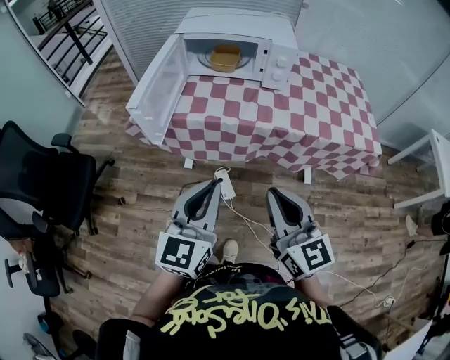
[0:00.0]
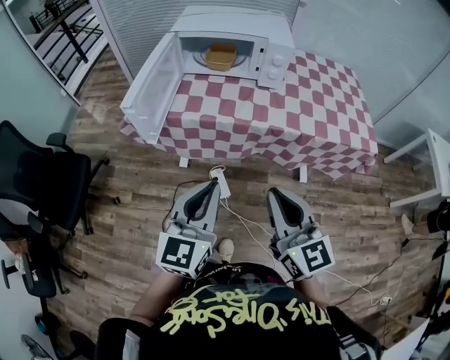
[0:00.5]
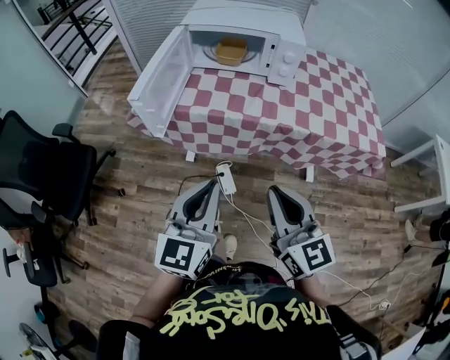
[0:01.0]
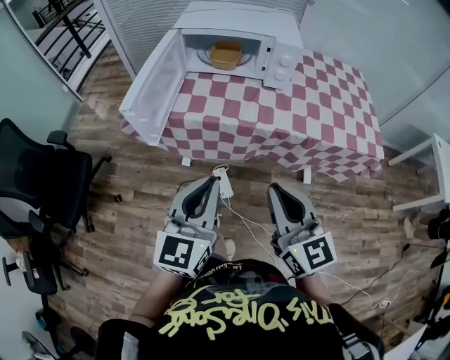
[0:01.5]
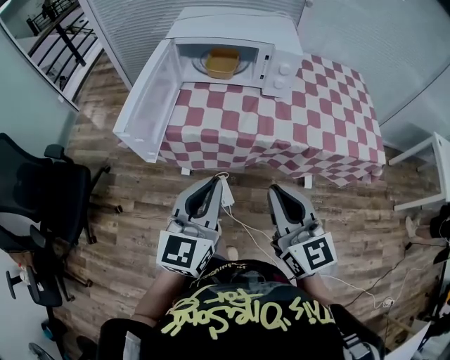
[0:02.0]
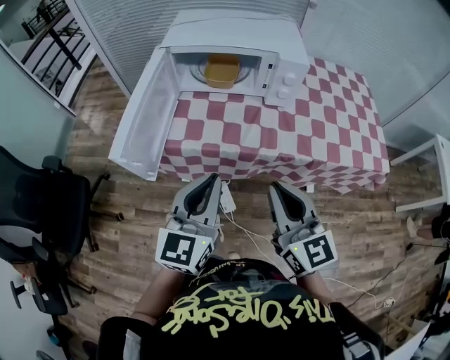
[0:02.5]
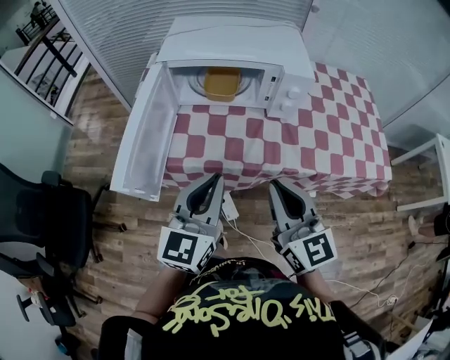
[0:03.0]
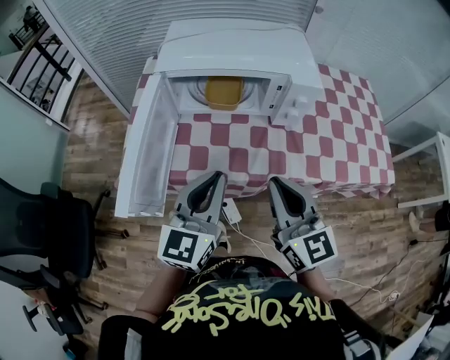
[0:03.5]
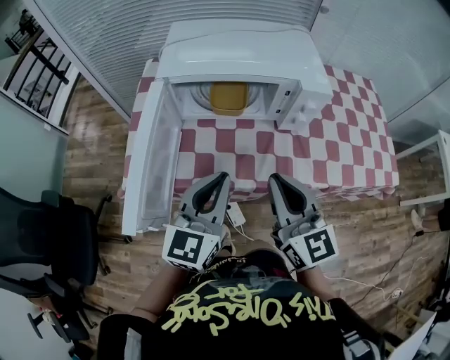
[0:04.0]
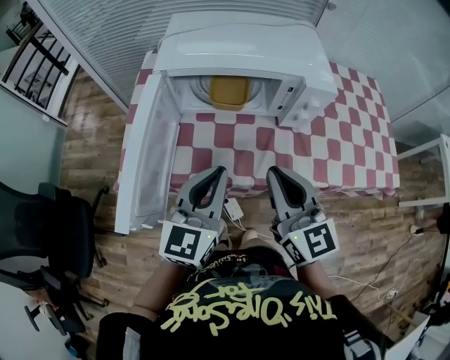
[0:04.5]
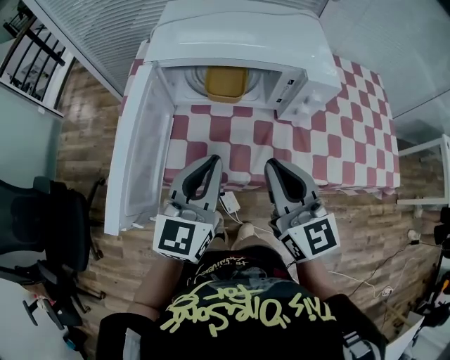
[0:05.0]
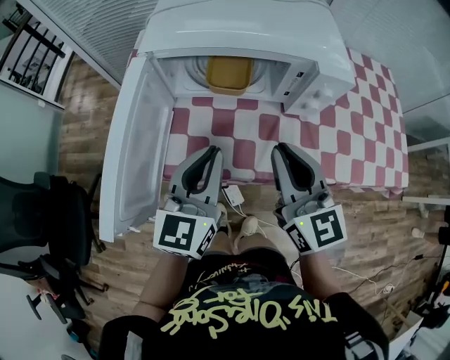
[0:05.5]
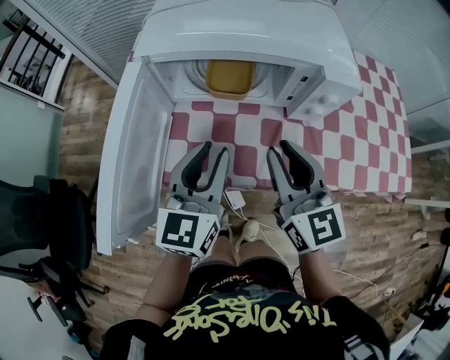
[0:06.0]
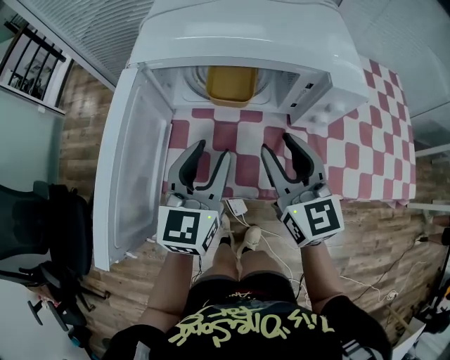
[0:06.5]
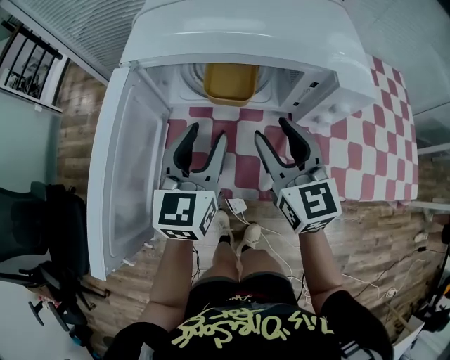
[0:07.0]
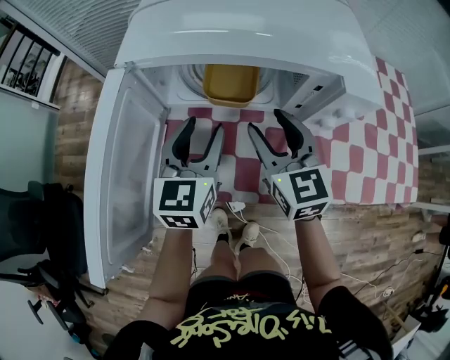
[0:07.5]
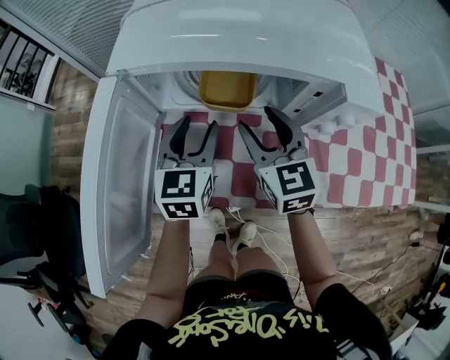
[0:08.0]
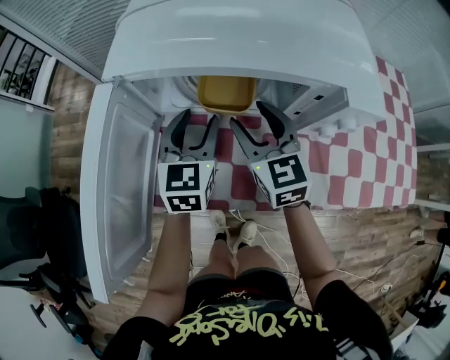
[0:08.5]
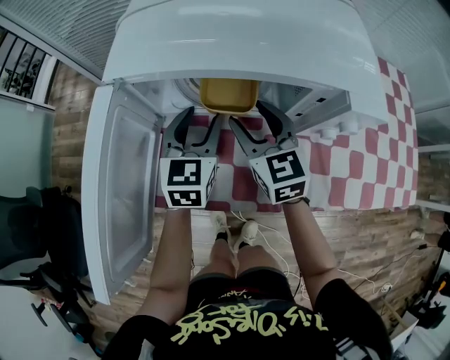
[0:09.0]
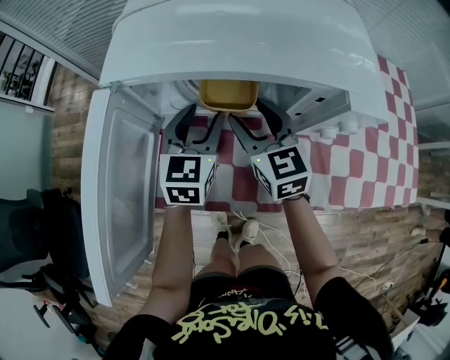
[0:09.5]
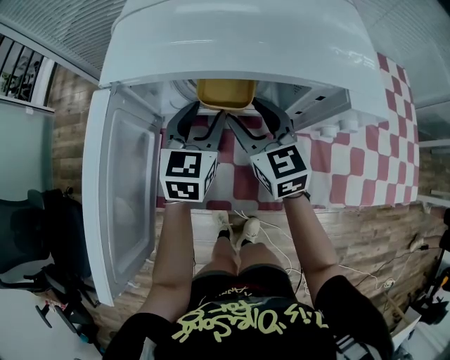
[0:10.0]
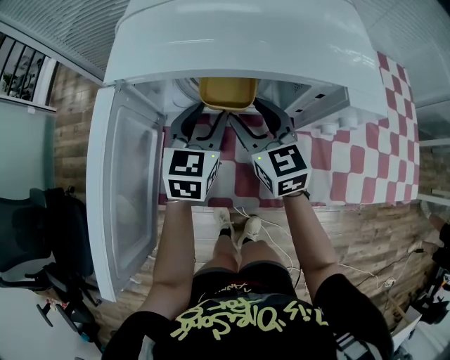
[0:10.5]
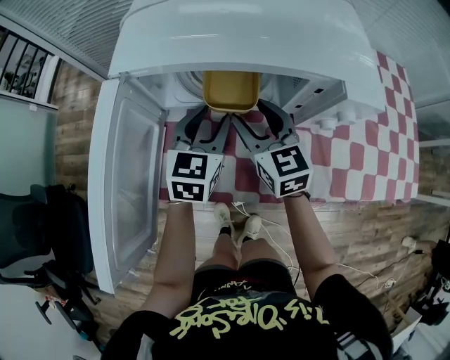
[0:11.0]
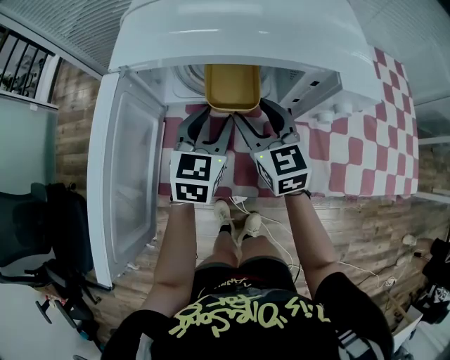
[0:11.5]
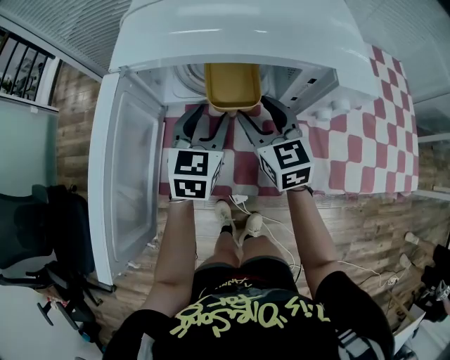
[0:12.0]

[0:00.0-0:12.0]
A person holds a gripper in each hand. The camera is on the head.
0:00.0 to 0:02.0: The grippers both shift forward by some 10 cm.
0:02.0 to 0:04.0: Both grippers travel together forward, approximately 20 cm.
0:04.0 to 0:06.0: Both grippers move forward, about 10 cm. The left gripper opens its fingers.
0:06.0 to 0:08.0: The two grippers go about 15 cm forward and downward. The right gripper opens, while the left gripper opens its fingers.
0:08.0 to 0:12.0: The grippers make only small movements.

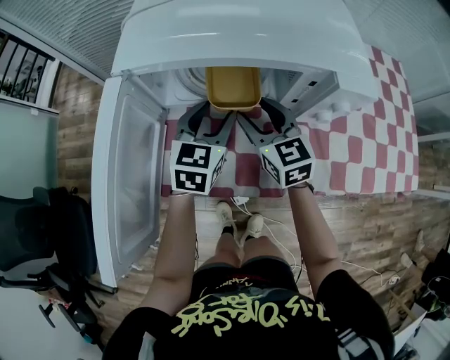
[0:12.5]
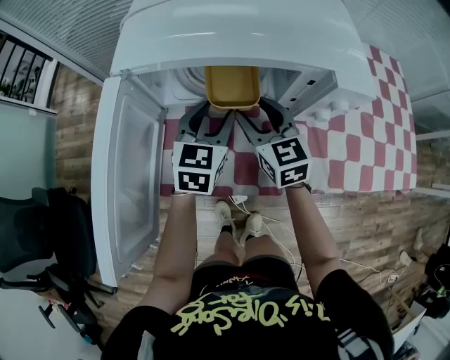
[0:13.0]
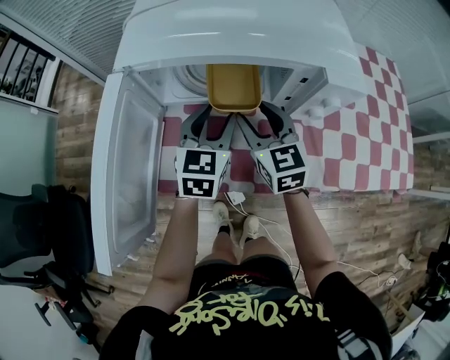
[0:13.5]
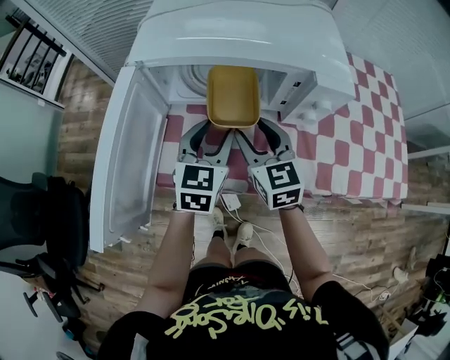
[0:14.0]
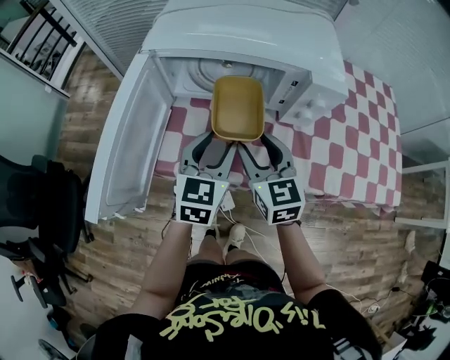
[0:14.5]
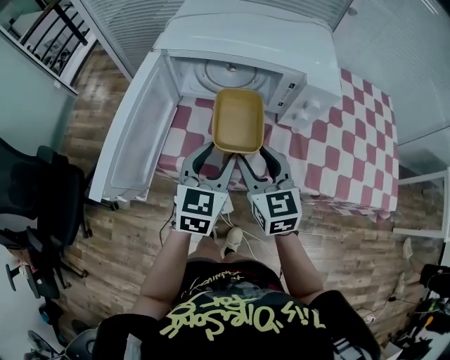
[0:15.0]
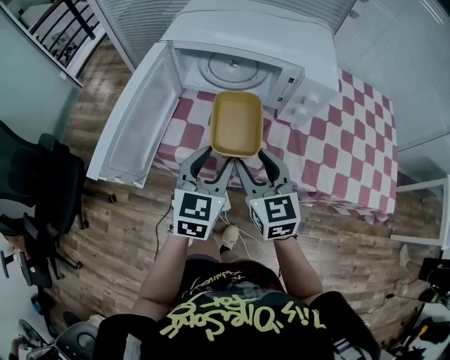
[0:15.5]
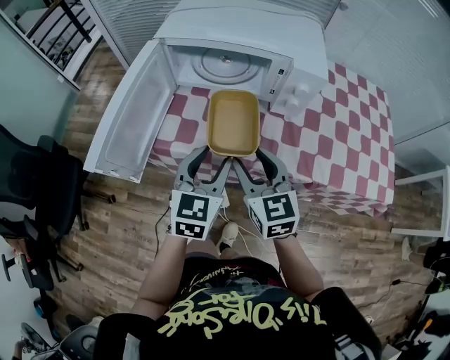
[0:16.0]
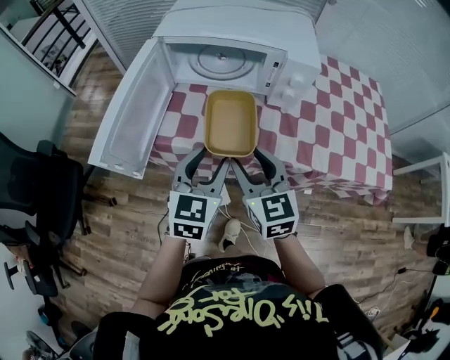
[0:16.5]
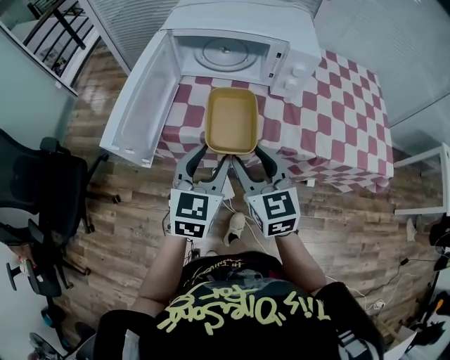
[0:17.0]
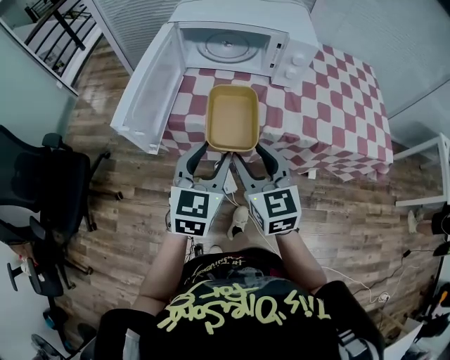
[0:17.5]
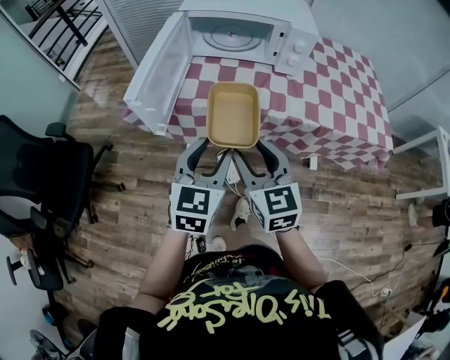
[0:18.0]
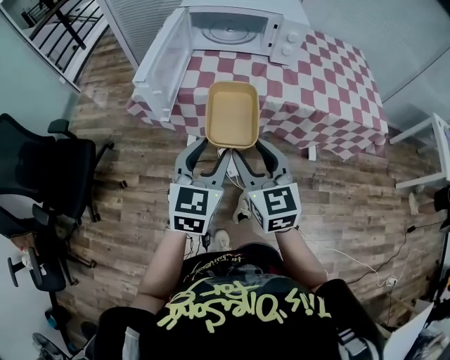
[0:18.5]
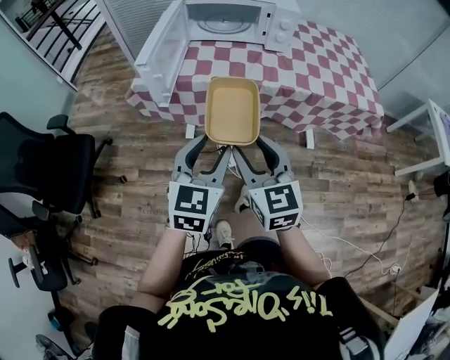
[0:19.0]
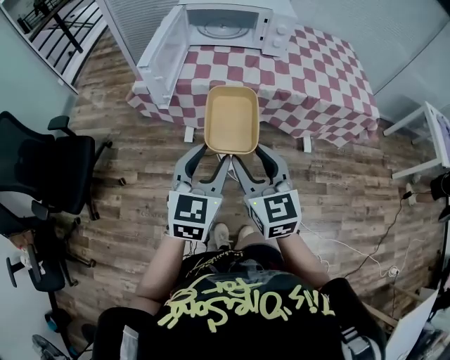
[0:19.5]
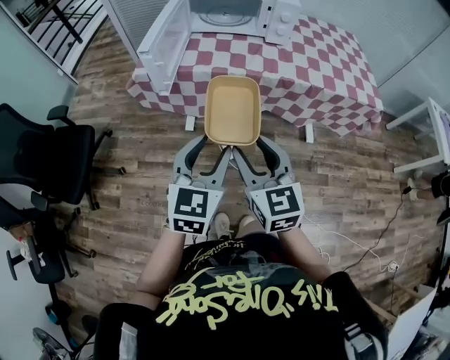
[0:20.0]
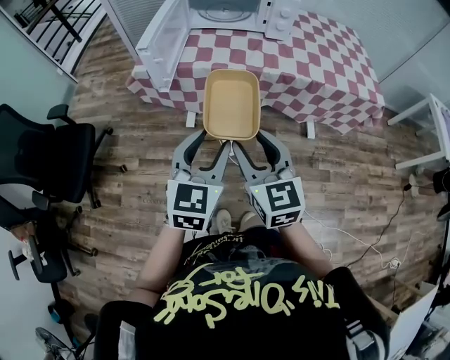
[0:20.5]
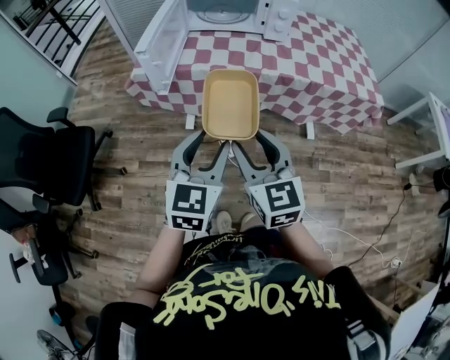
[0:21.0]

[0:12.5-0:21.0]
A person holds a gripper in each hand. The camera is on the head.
0:12.5 to 0:14.5: Both grippers move backward, roughly 10 cm.
0:14.5 to 0:16.5: The two grippers go some 15 cm backward.
0:16.5 to 0:19.0: The two grippers go approximately 25 cm backward.
0:19.0 to 0:21.0: The grippers stay close to where they were, moving slightly.

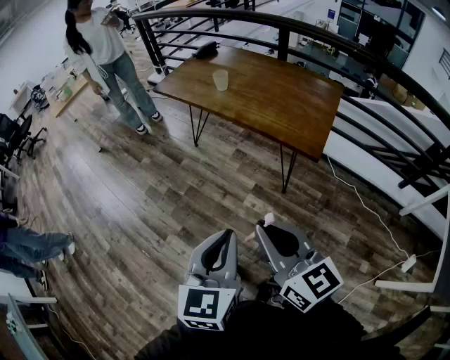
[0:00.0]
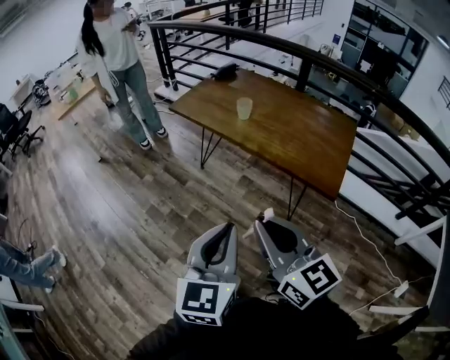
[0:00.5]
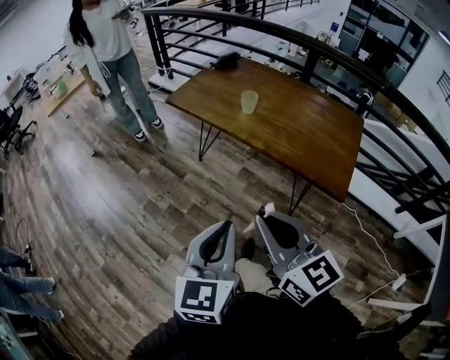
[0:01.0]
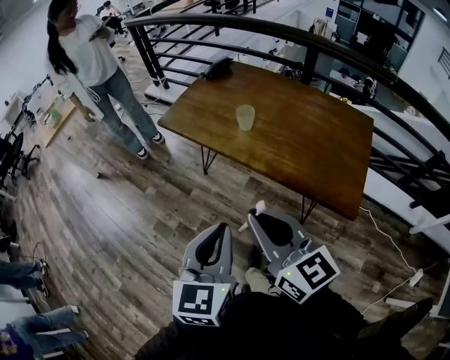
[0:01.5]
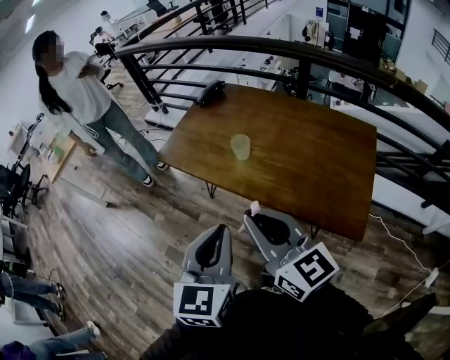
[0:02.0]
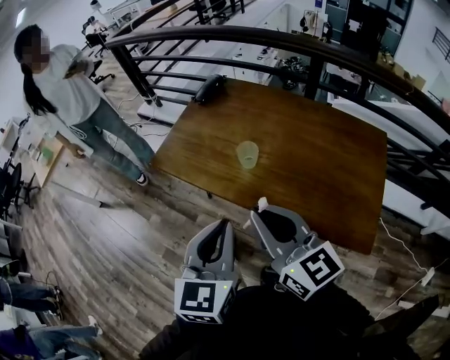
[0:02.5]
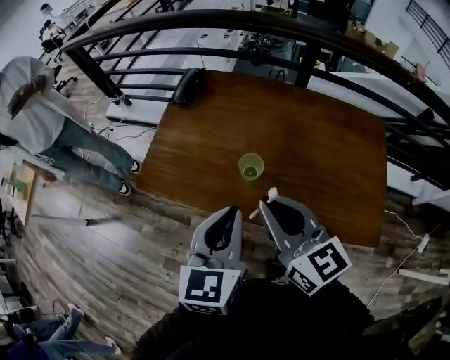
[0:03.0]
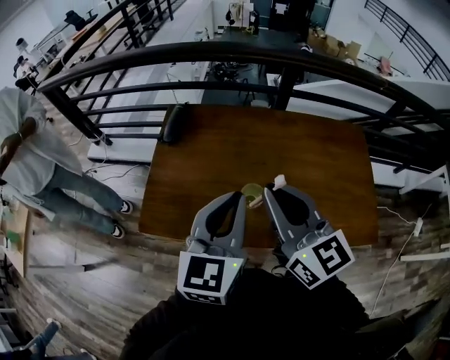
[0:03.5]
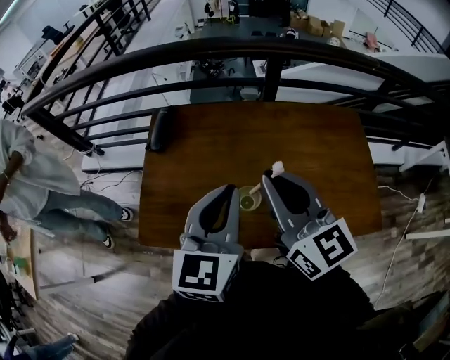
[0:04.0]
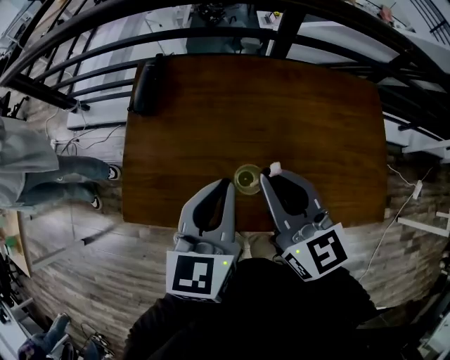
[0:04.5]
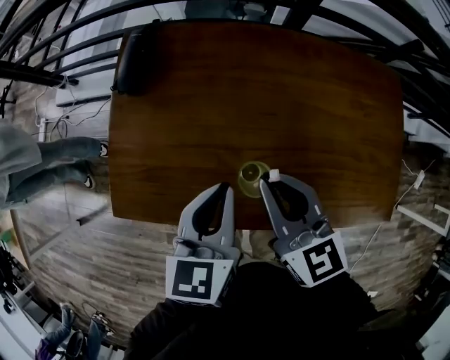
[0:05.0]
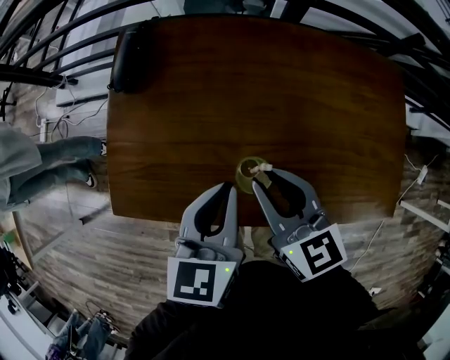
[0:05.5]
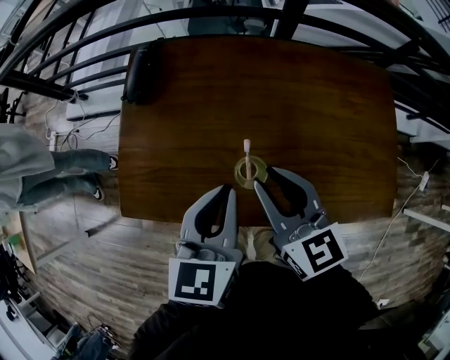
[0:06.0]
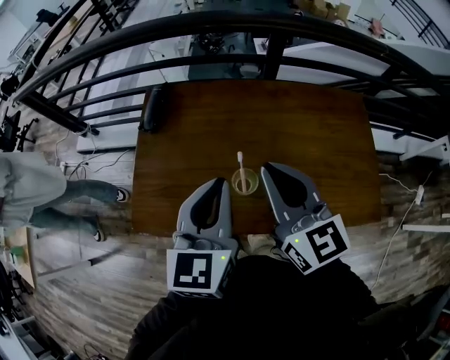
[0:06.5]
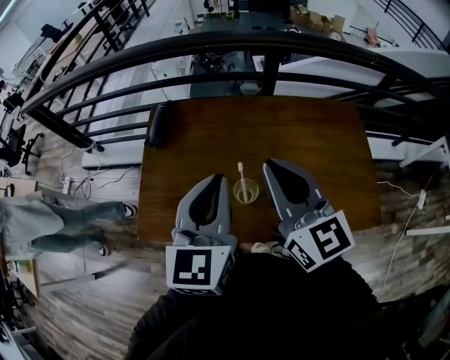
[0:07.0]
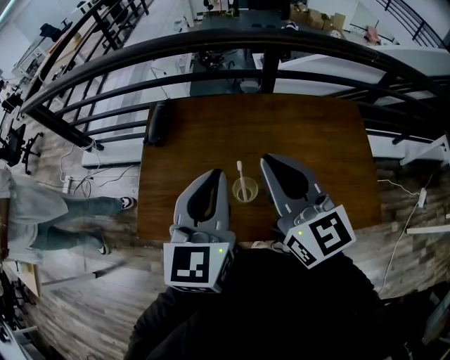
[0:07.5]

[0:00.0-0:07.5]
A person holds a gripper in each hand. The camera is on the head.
0:00.0 to 0:02.0: The two grippers travel together, forward, approximately 40 cm.
0:02.0 to 0:04.0: The right gripper ends up some 30 cm from where it was, and swivels approximately 40 degrees. Meanwhile the left gripper changes place by about 35 cm, and changes its angle by approximately 30 degrees.
0:04.0 to 0:05.5: Both grippers travel together downward, about 20 cm. The right gripper turns by some 30 degrees. Meanwhile the left gripper turns by about 30 degrees.
0:05.5 to 0:07.5: Both grippers move upward, roughly 20 cm. The right gripper rotates approximately 30 degrees, and closes. Meanwhile the left gripper changes its angle by some 30 degrees.
